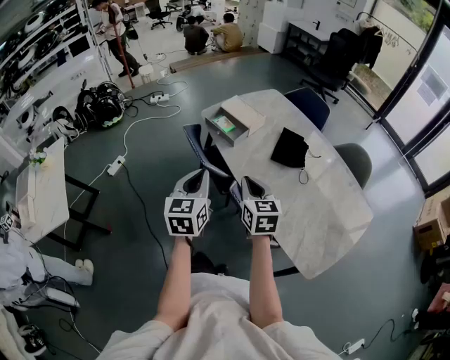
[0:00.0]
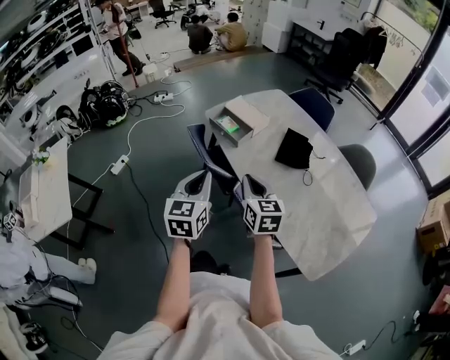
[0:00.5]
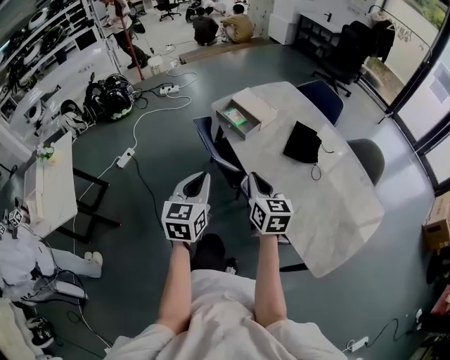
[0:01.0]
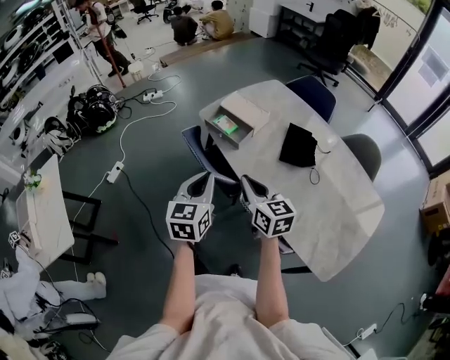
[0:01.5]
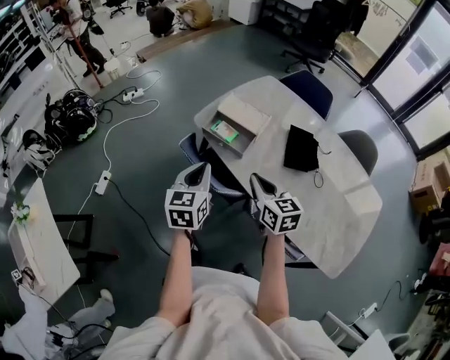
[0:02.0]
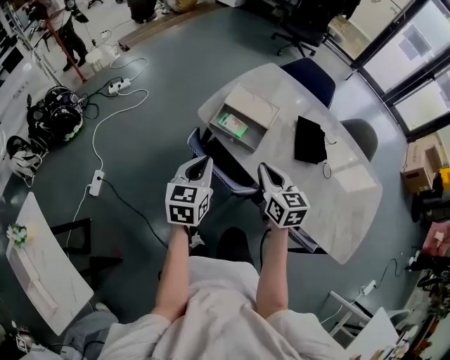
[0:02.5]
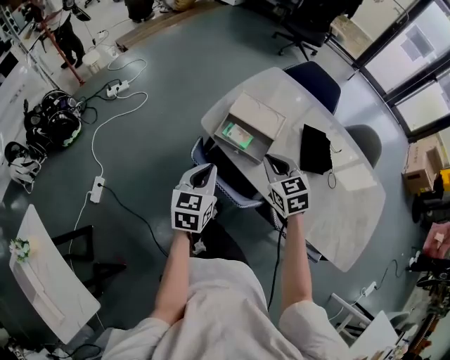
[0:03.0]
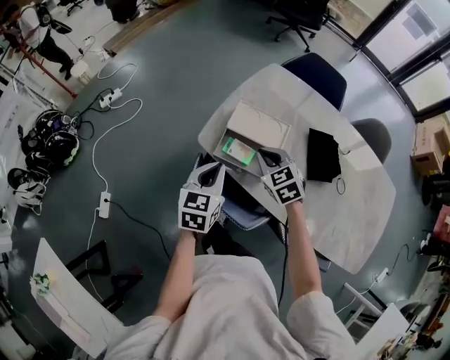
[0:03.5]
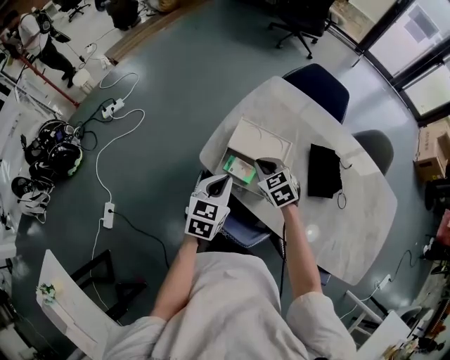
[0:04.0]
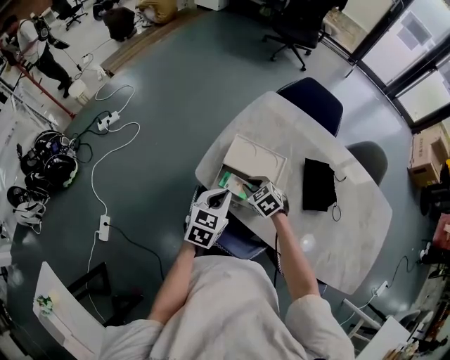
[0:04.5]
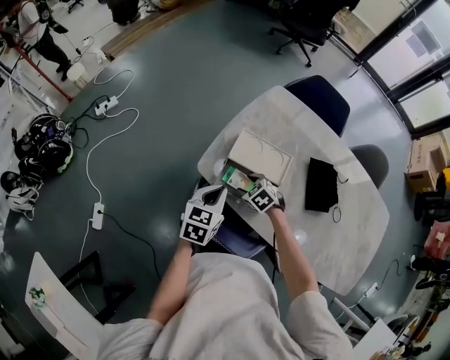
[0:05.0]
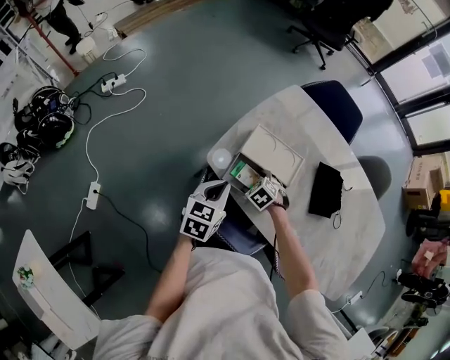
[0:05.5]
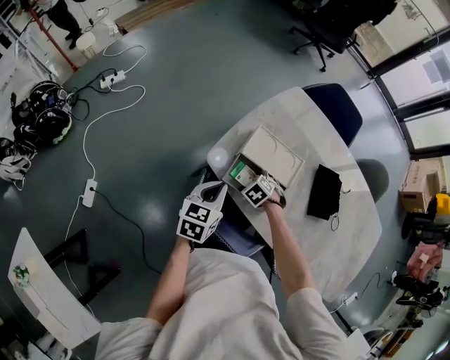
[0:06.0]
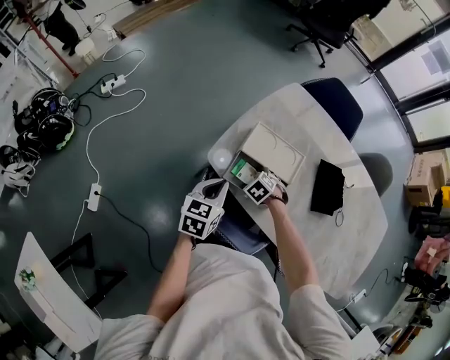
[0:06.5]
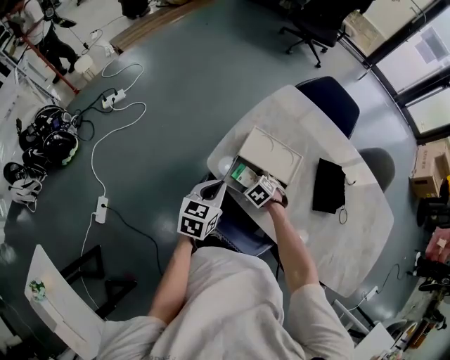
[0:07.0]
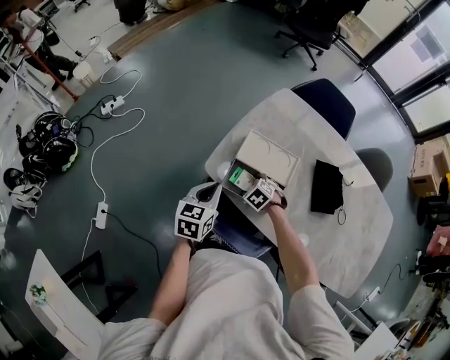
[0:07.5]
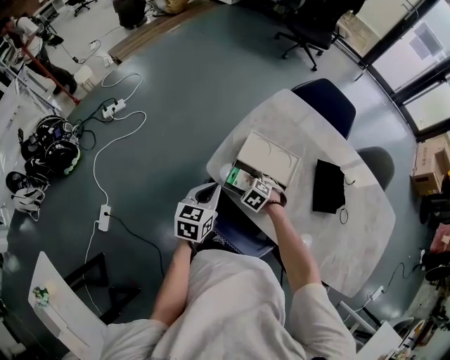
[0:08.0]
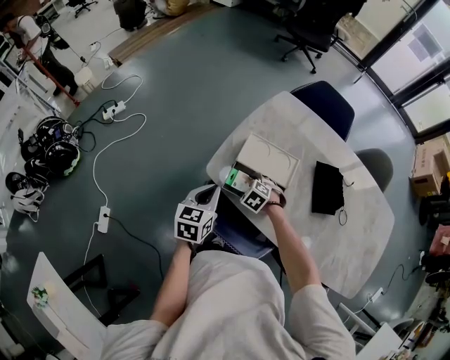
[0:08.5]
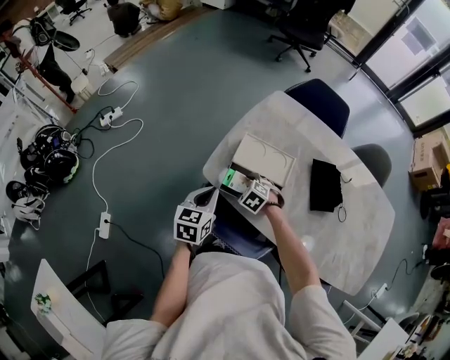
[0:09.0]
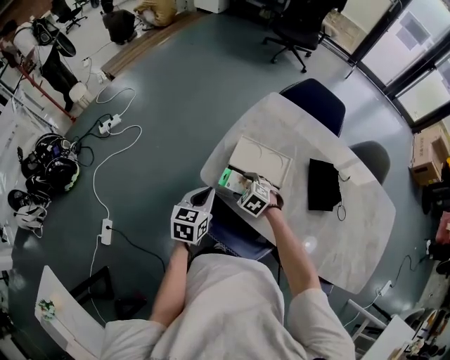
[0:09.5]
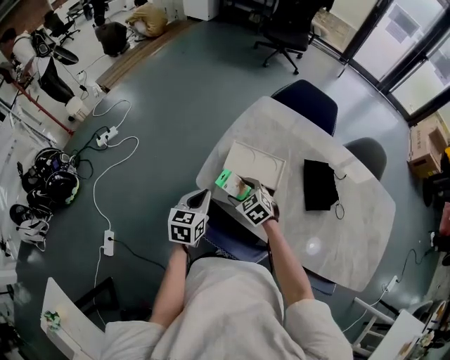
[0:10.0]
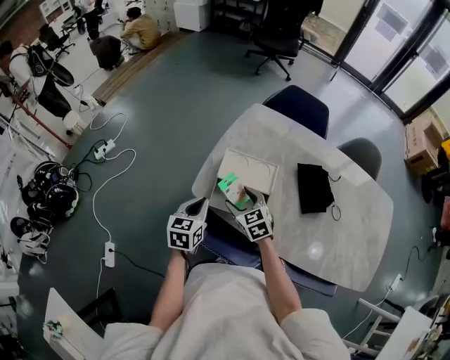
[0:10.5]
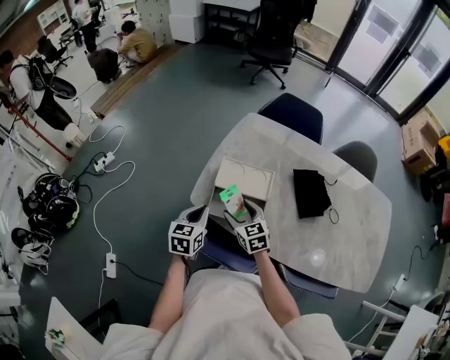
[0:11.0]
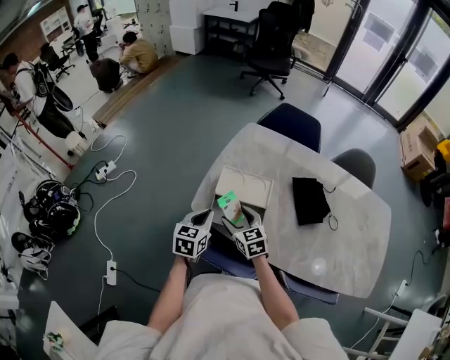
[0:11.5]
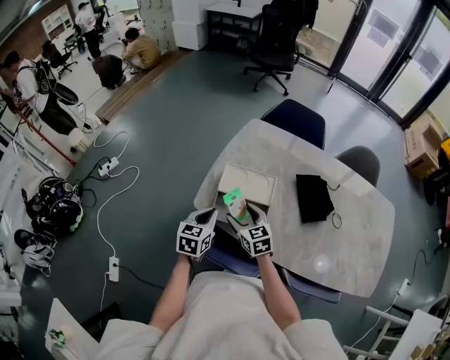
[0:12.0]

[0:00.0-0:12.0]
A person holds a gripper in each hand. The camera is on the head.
0:00.0 to 0:02.0: The grippers both shift forward by some 20 cm.
0:02.0 to 0:04.0: Both grippers move forward, about 25 cm. The right gripper rotates some 30 degrees. Meanwhile the left gripper rotates some 30 degrees.
0:04.0 to 0:06.0: The left gripper travels downward by about 5 cm. Meanwhile the right gripper travels downward by roughly 20 cm, points its fingers roughly 30 degrees further downward, and opens up.
0:06.0 to 0:08.0: There are only small adjustments of the grippers.
0:08.0 to 0:10.0: The right gripper travels upward by roughly 10 cm, and changes its angle by some 30 degrees.
0:10.0 to 0:12.0: The right gripper travels upward by some 5 cm, and rotates some 30 degrees.

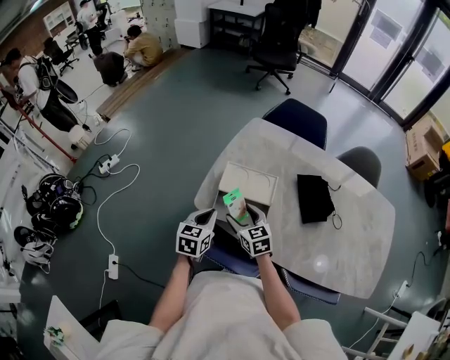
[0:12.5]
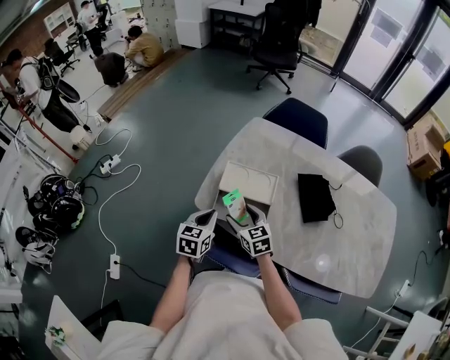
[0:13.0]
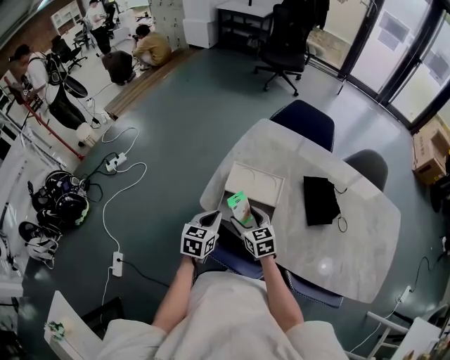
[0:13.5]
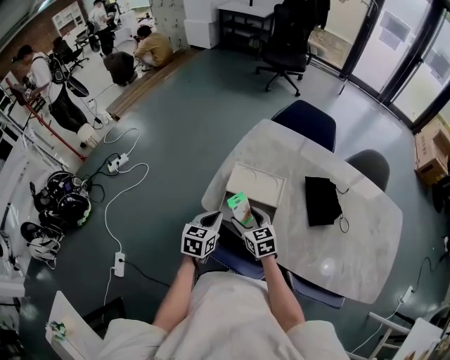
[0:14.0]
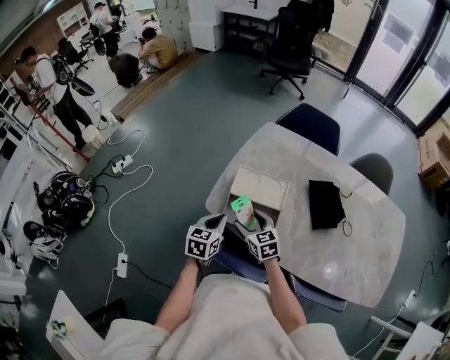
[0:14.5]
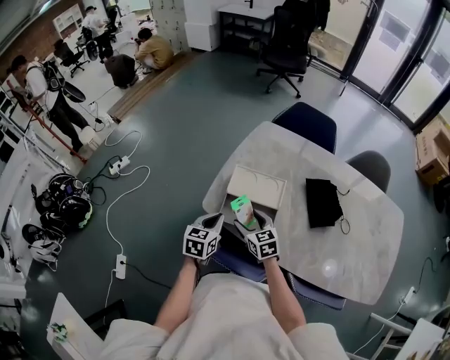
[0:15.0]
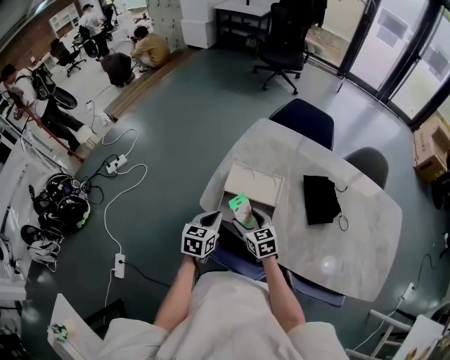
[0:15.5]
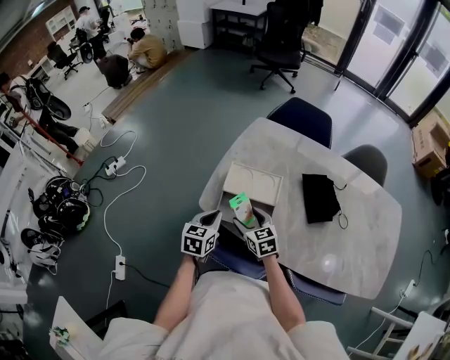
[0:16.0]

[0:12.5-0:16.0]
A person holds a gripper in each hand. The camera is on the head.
0:12.5 to 0:16.0: The grippers move only a little.

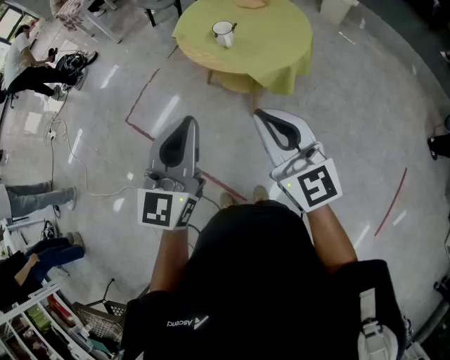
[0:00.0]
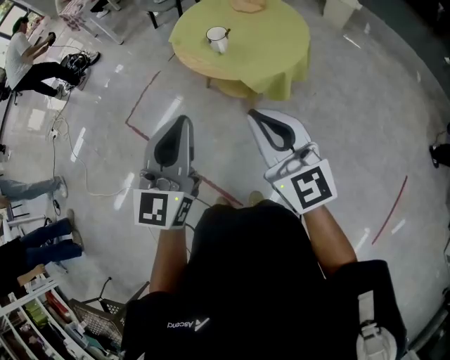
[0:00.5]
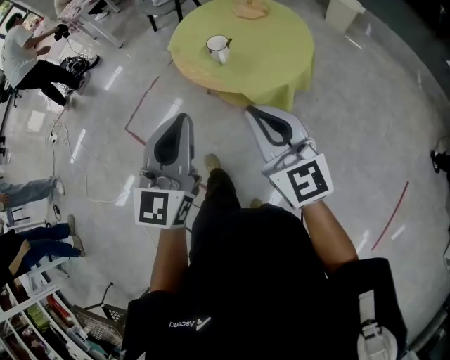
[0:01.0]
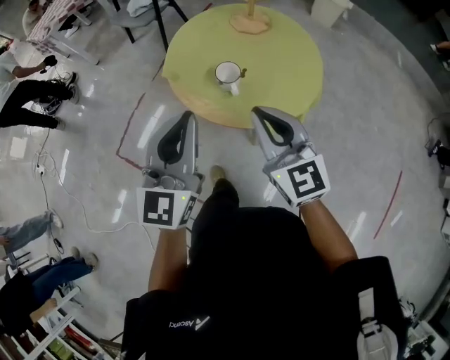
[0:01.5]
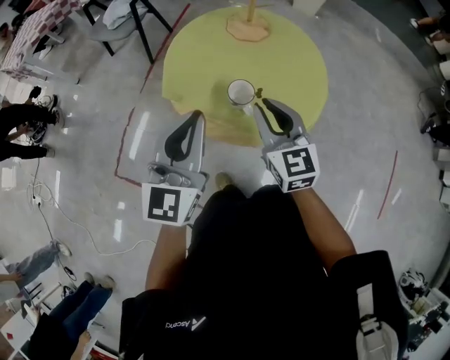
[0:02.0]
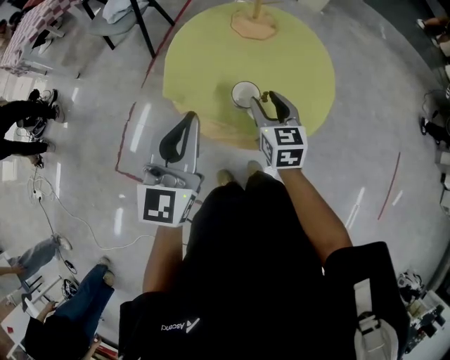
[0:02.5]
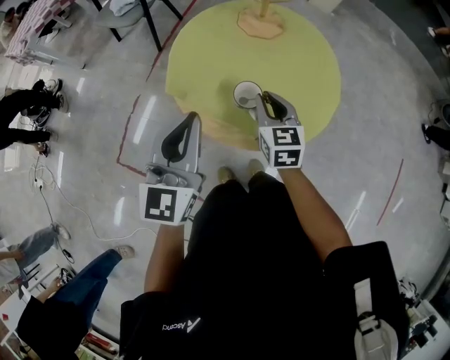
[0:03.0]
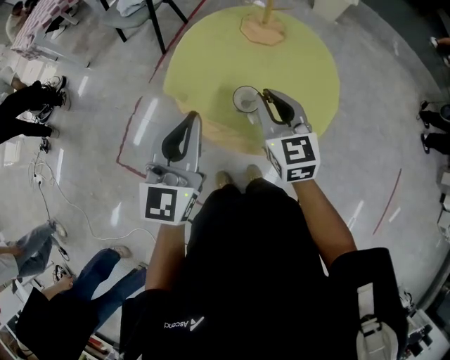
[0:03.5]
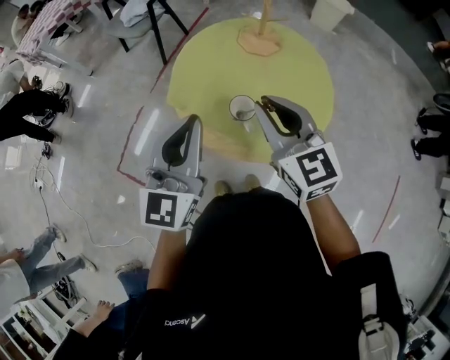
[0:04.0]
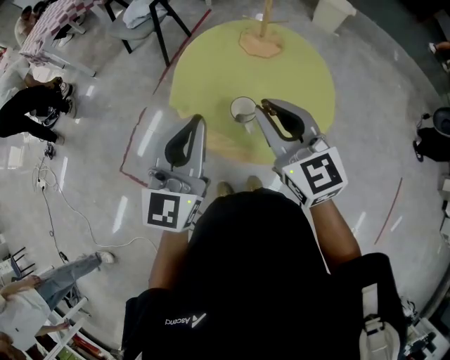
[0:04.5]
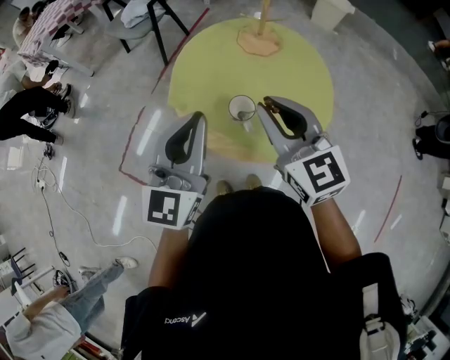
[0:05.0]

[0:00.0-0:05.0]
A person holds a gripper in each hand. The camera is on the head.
0:00.0 to 0:02.5: Both grippers are carried some 50 cm. The right gripper swivels some 50 degrees, and opens its fingers.
0:02.5 to 0:05.0: The right gripper goes roughly 20 cm upward, changes its angle by some 30 degrees, and closes. Meanwhile the left gripper changes place by about 5 cm.

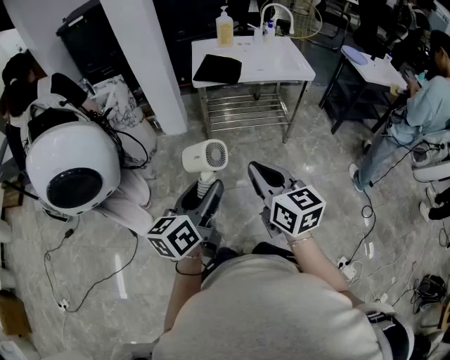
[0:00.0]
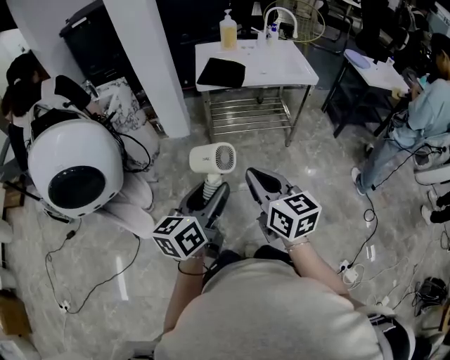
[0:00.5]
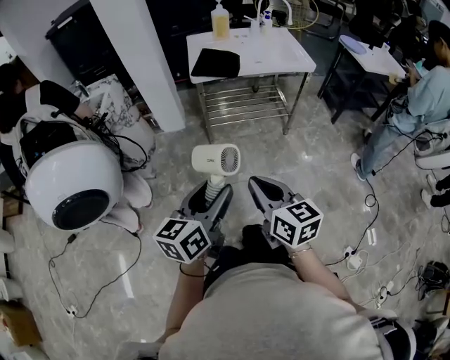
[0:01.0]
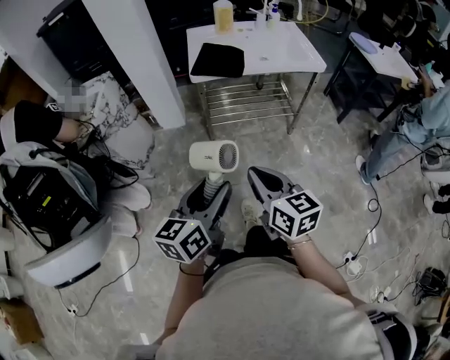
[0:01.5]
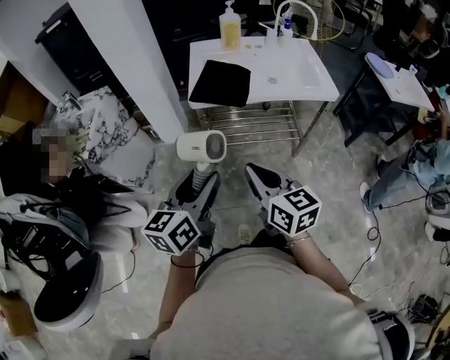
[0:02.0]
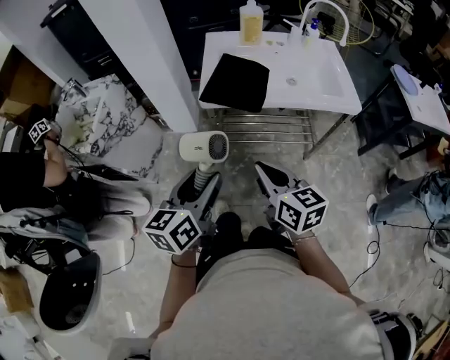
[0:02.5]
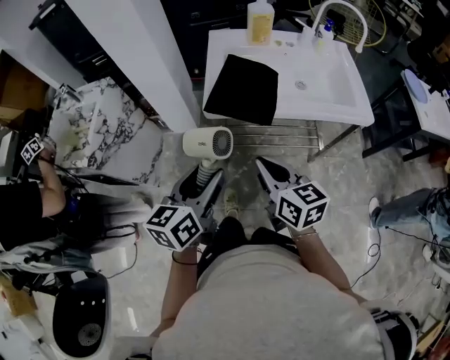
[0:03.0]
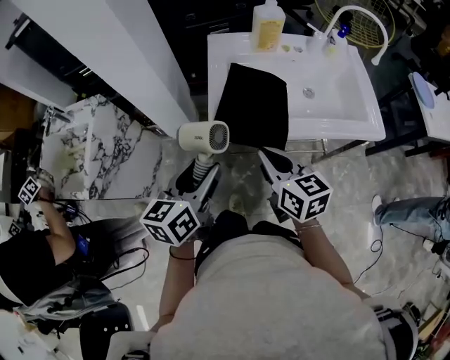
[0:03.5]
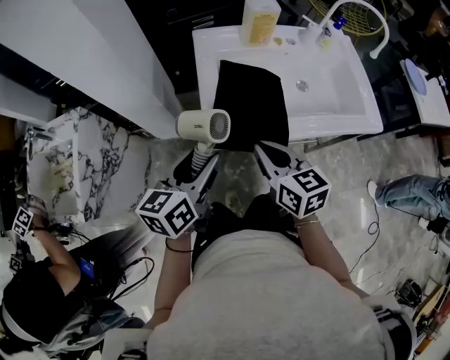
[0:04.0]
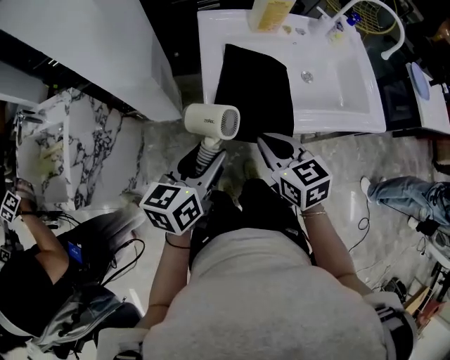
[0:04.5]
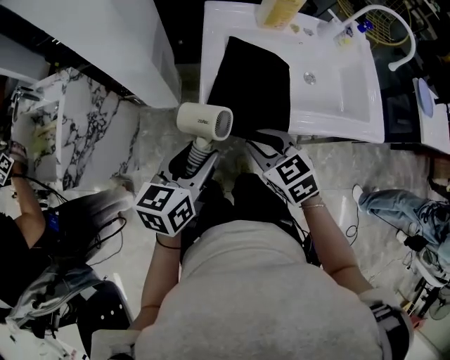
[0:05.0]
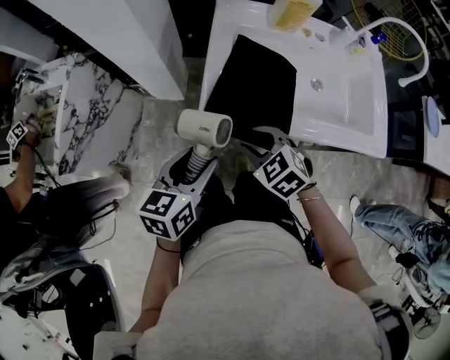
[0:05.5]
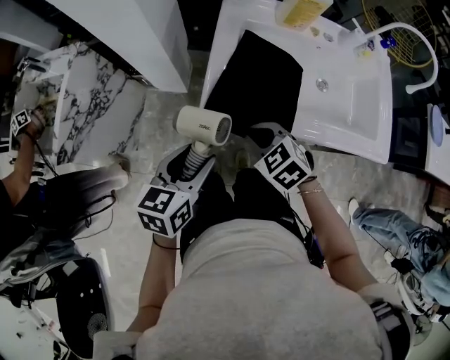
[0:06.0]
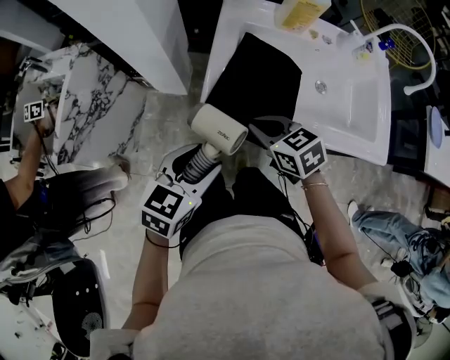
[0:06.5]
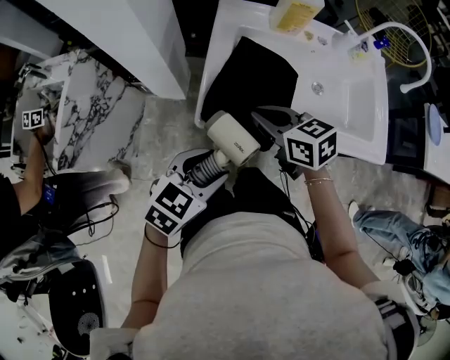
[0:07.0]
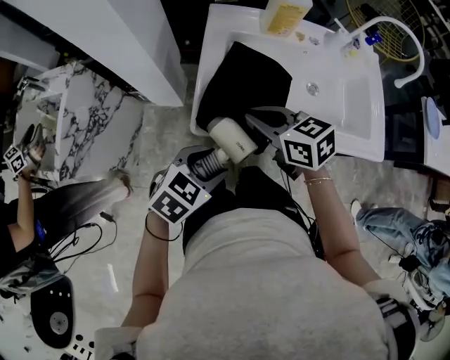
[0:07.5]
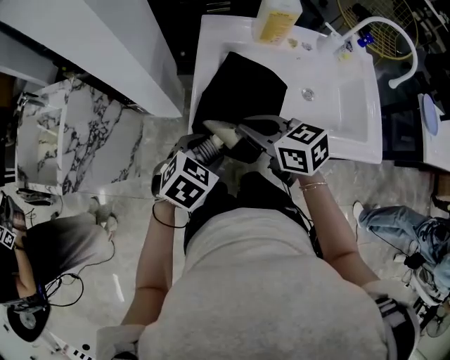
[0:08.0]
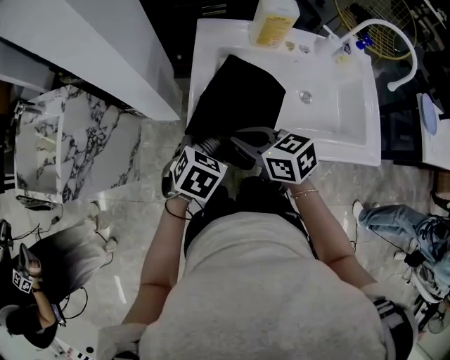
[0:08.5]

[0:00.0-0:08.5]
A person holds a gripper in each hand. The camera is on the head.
0:00.0 to 0:02.0: The grippers both shift forward by some 25 cm.
0:02.0 to 0:04.0: Both grippers move forward, approximately 35 cm.
0:04.0 to 0:06.5: The left gripper shifts about 5 cm downward, and swivels about 20 degrees, while the right gripper shifts some 10 cm downward, swivels approximately 40 degrees, and opens and closes again.
0:06.5 to 0:08.5: The right gripper changes place by some 5 cm. Meanwhile the left gripper travels forward and downward by roughly 10 cm, and turns by some 30 degrees.
